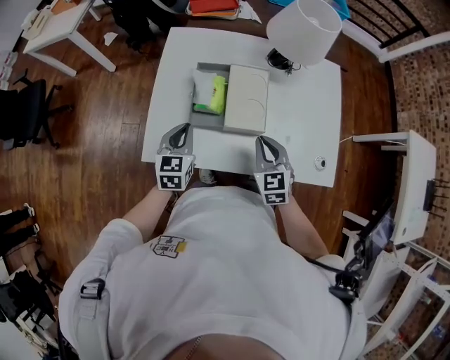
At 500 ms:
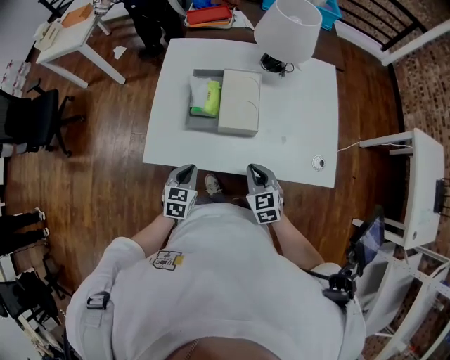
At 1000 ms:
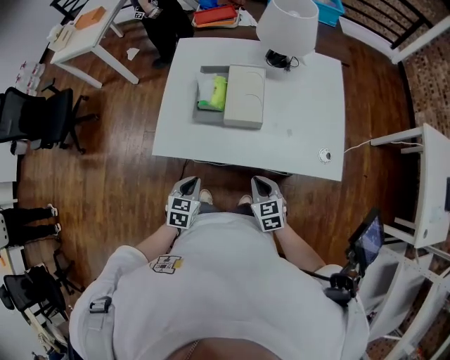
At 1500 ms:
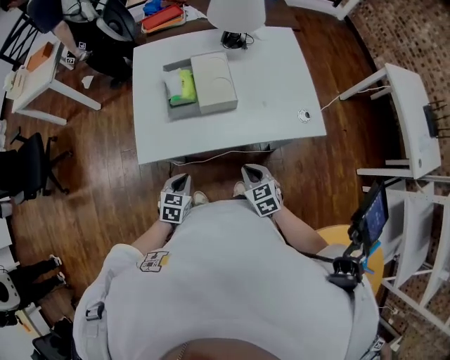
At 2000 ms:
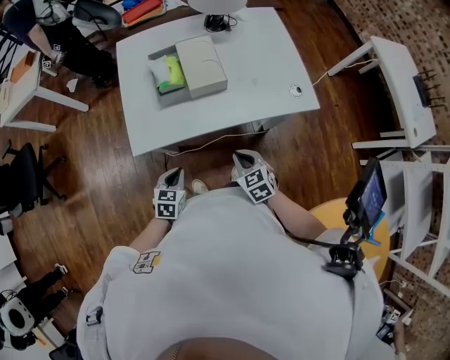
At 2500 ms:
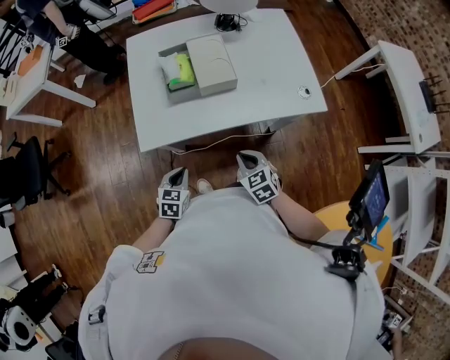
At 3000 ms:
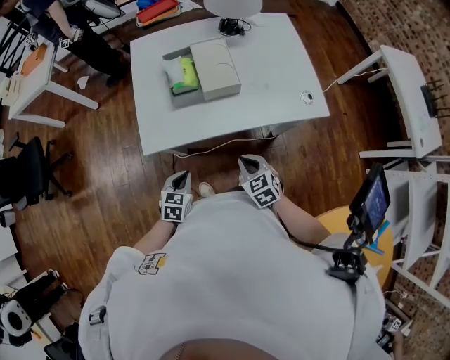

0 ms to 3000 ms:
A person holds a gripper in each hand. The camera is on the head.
0 ms to 1500 ms: The grippers both shift backward and downward by roughly 25 cm. The left gripper swivels roughly 30 degrees.
1500 ms to 3000 ms: The right gripper ends up some 5 cm from where it was.

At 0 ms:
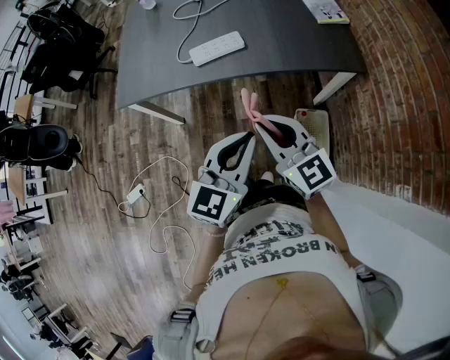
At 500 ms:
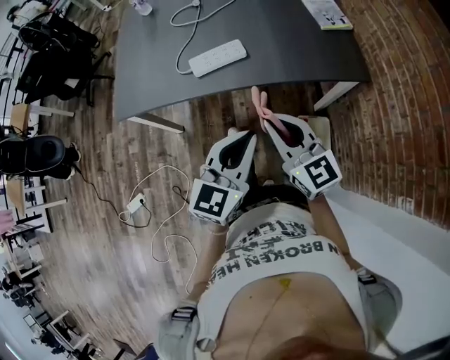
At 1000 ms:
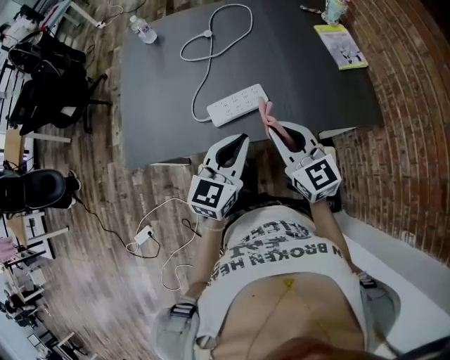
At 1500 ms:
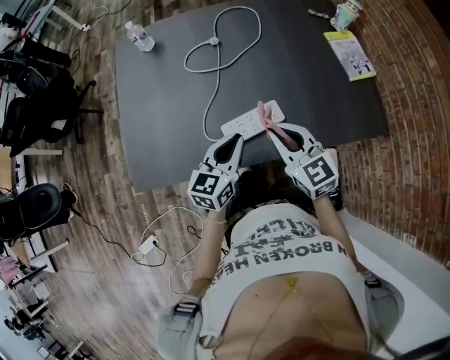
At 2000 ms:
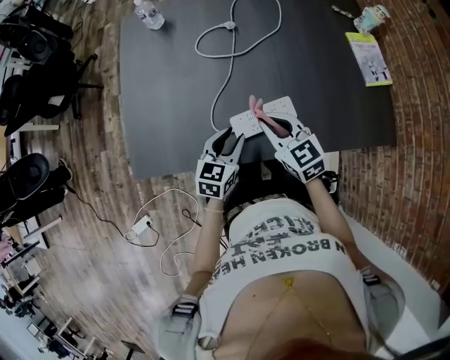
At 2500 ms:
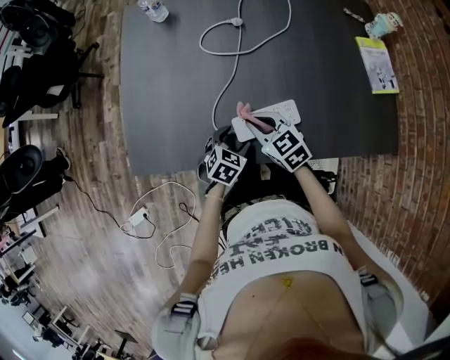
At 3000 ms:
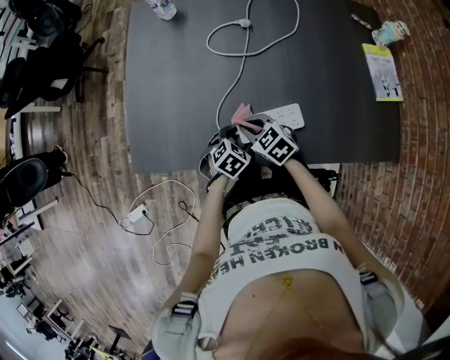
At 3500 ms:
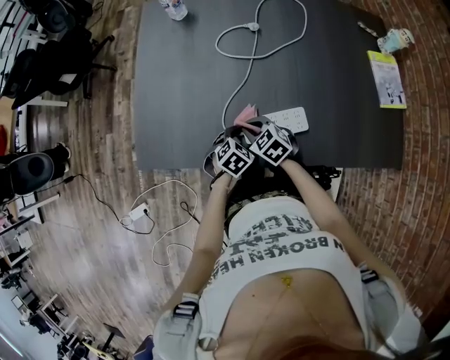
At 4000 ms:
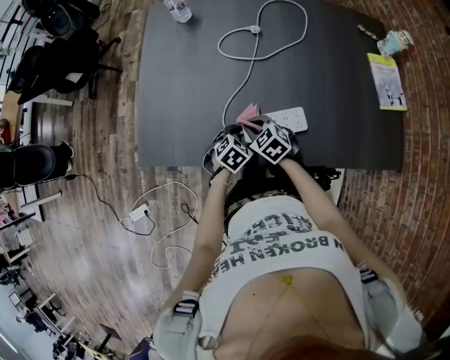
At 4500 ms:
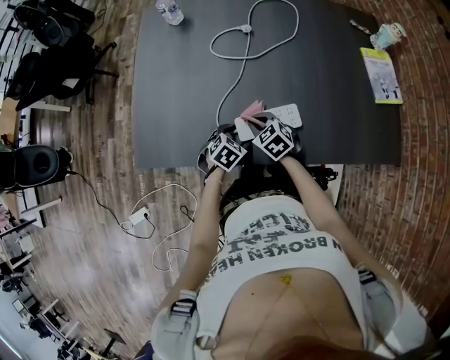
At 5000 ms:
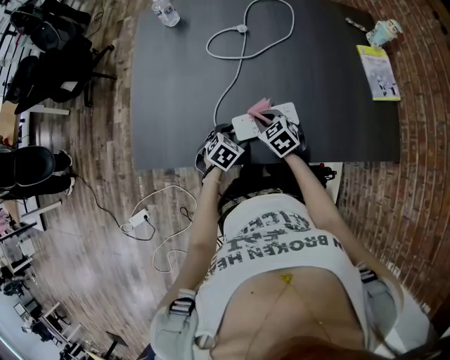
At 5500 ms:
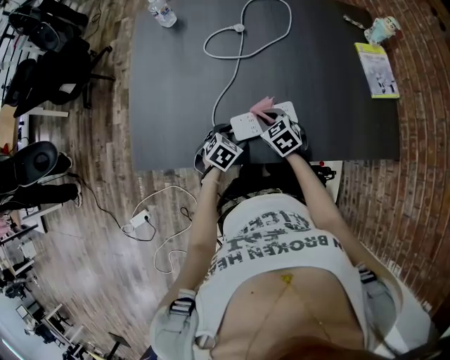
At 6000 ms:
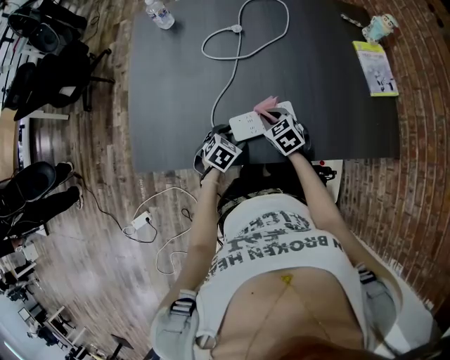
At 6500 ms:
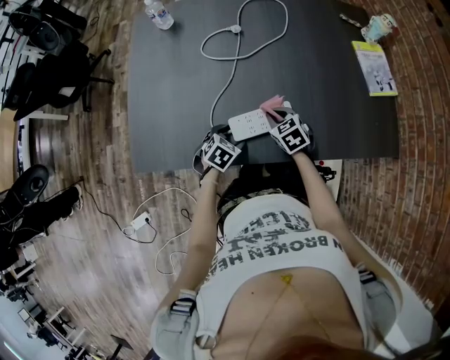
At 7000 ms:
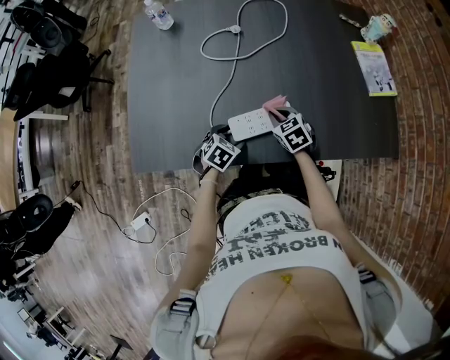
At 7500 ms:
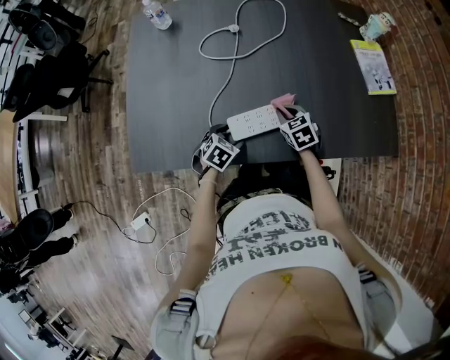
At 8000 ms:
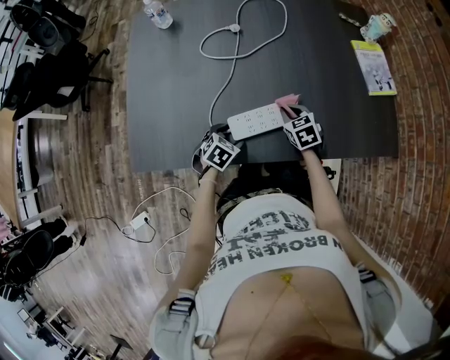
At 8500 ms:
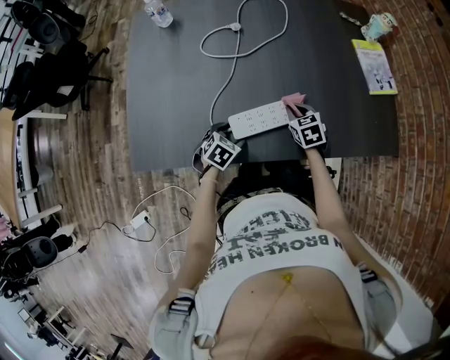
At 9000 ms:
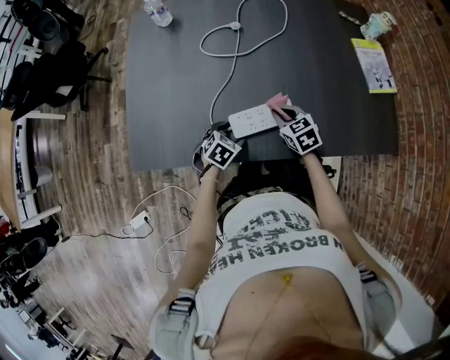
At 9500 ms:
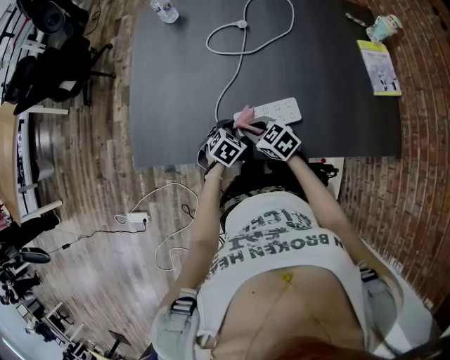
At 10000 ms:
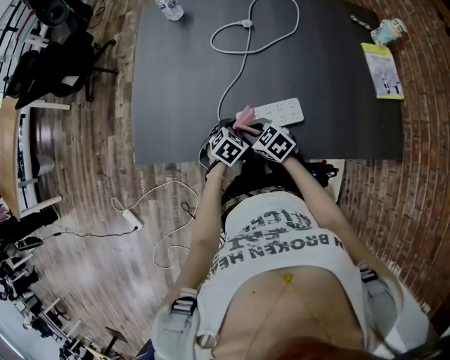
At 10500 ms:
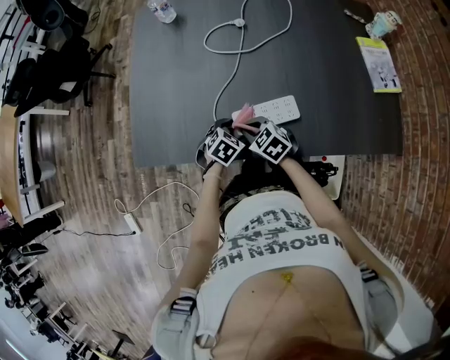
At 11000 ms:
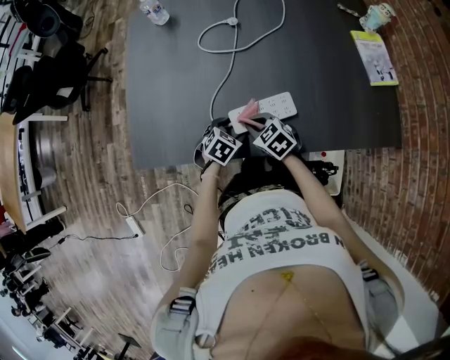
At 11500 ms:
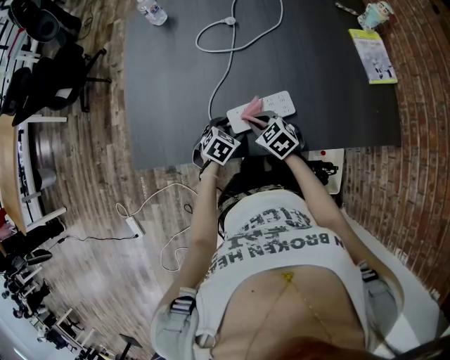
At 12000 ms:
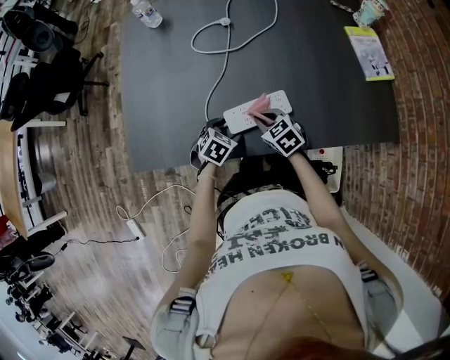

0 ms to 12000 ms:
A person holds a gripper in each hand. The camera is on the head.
0 ms to 2000 ms: The pair of grippers is taken forward and to the left, roughly 40 cm. The right gripper changes its angle by some 20 degrees. Meanwhile the left gripper is displaced downward by some 20 cm, changes its angle by about 20 degrees, and opens its fingers.
2000 ms to 4000 ms: The right gripper heads downward and to the left, covering about 15 cm, and turns by about 30 degrees. The left gripper heads downward, covering about 15 cm, tips its fingers downward by some 30 degrees, and opens its fingers.
4000 ms to 6000 ms: The right gripper travels to the right by about 10 cm.
6000 ms to 8000 ms: The right gripper moves to the right, about 10 cm.
8000 ms to 10000 ms: The right gripper travels to the left and backward by some 20 cm, and changes its angle by approximately 30 degrees.
10000 ms to 12000 ms: The right gripper heads to the right, covering about 10 cm.

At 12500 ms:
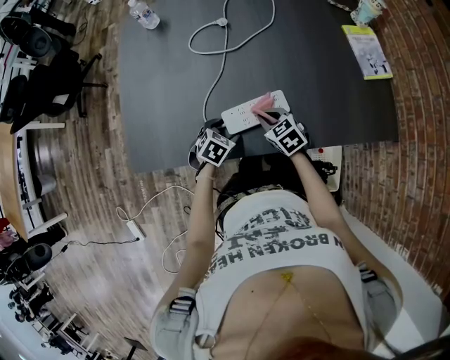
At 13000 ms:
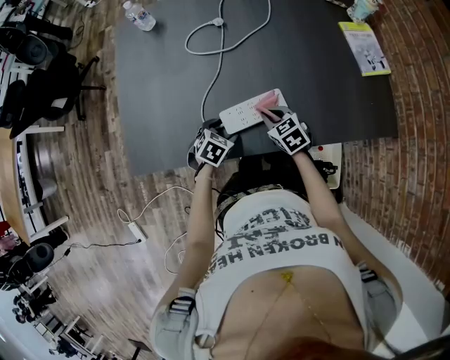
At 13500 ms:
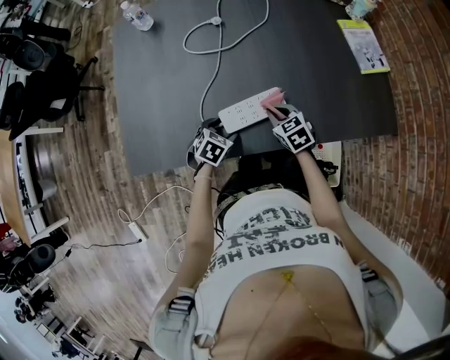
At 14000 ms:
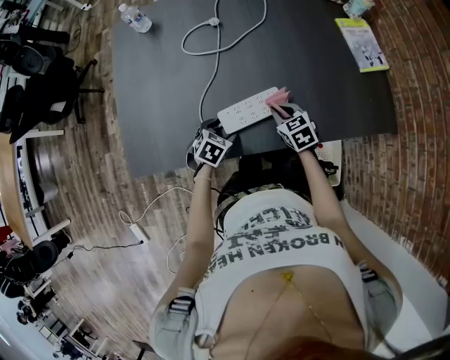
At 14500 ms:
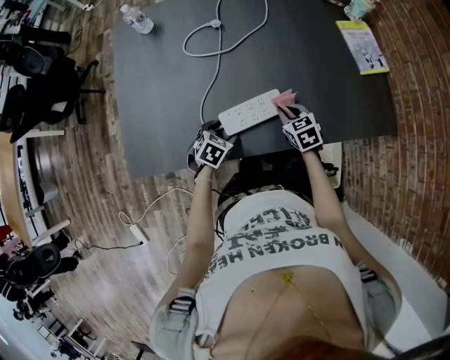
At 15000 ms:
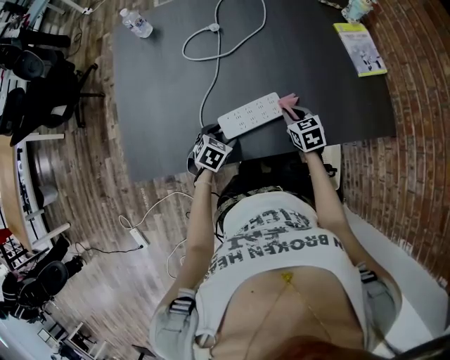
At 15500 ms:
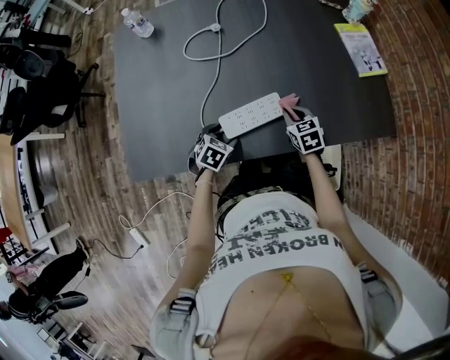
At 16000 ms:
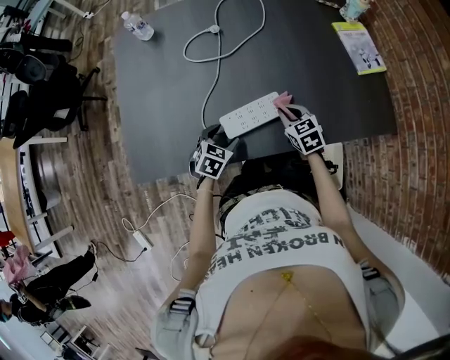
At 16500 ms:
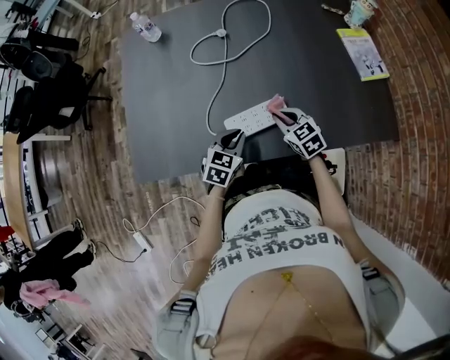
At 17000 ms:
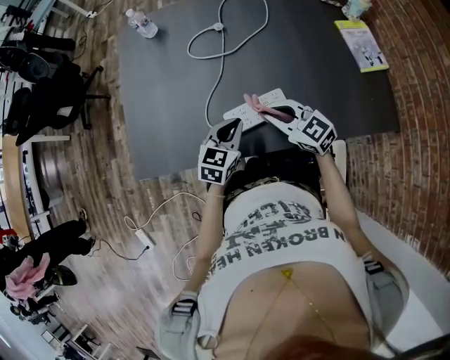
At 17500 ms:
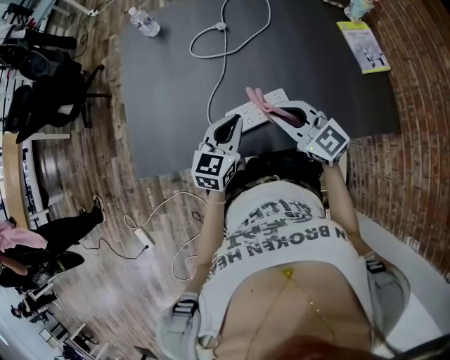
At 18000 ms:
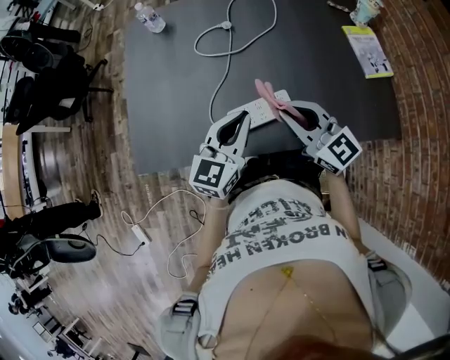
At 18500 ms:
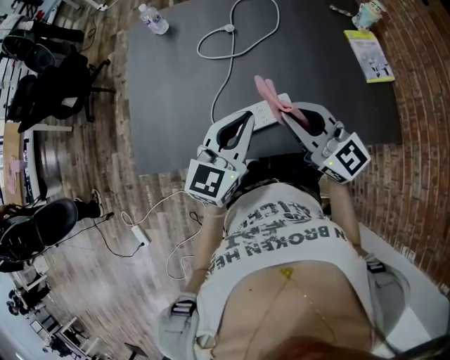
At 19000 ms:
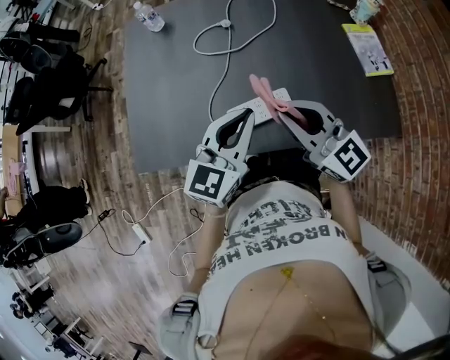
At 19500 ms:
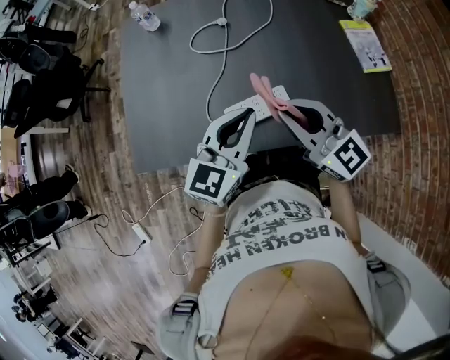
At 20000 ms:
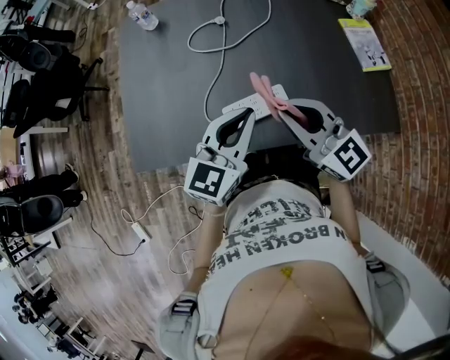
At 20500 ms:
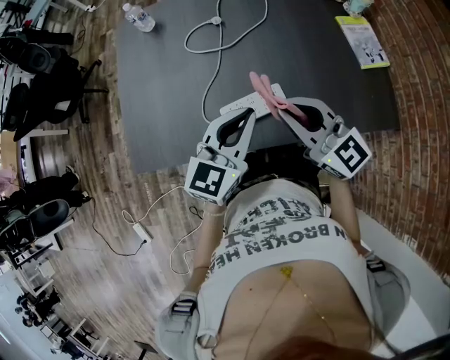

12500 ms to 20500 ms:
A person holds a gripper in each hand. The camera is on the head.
12500 ms to 14500 ms: The right gripper is displaced to the right by some 10 cm.
14500 ms to 16500 ms: The right gripper ends up some 5 cm from where it was; the left gripper travels upward by some 10 cm, changes its angle by approximately 20 degrees, and closes.
16500 ms to 18500 ms: Both grippers travel together upward, about 25 cm. The right gripper tilts its fingers approximately 40 degrees upward. Meanwhile the left gripper points its fingers approximately 30 degrees further upward.
18500 ms to 20500 ms: There are only small adjustments of the grippers.

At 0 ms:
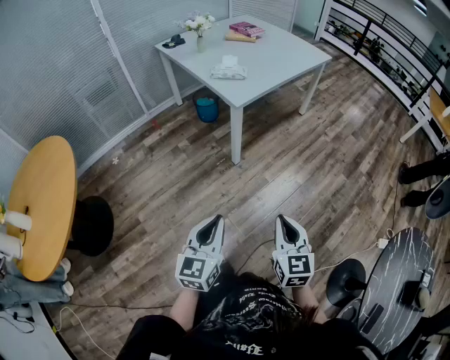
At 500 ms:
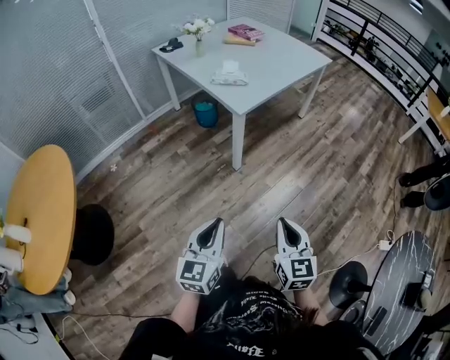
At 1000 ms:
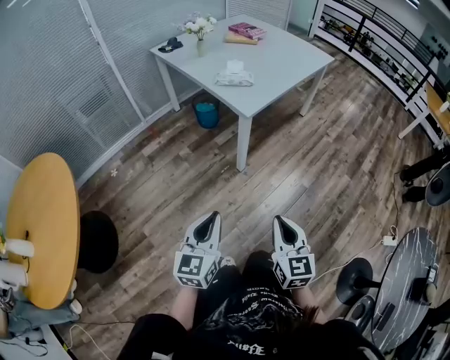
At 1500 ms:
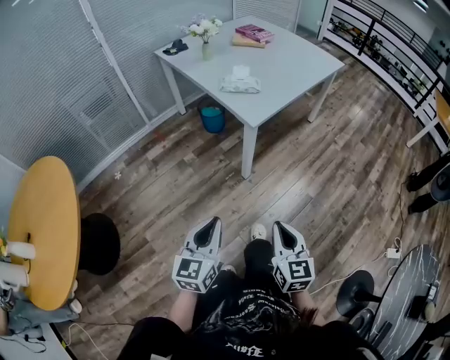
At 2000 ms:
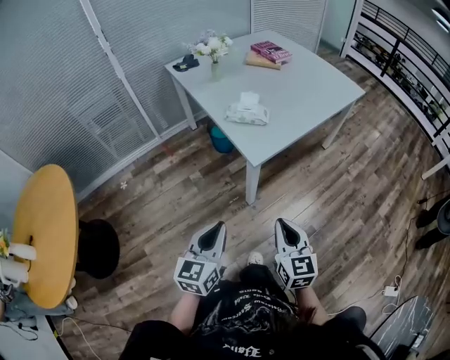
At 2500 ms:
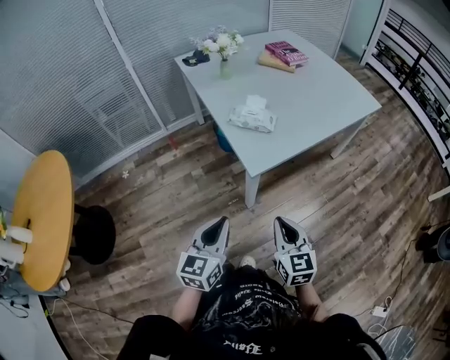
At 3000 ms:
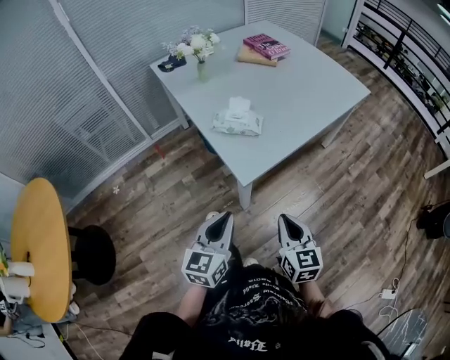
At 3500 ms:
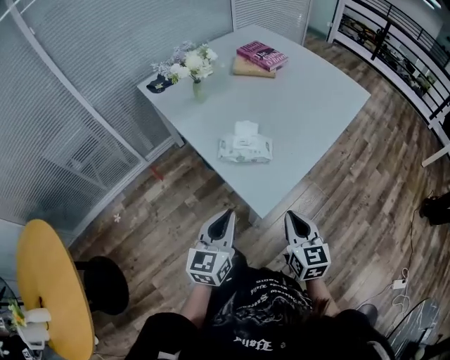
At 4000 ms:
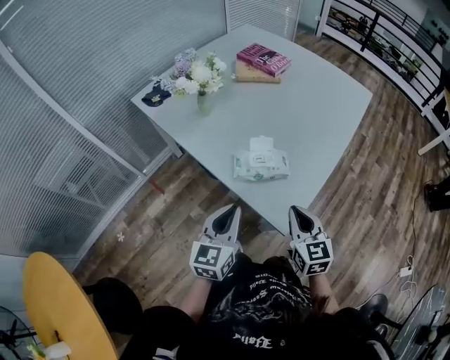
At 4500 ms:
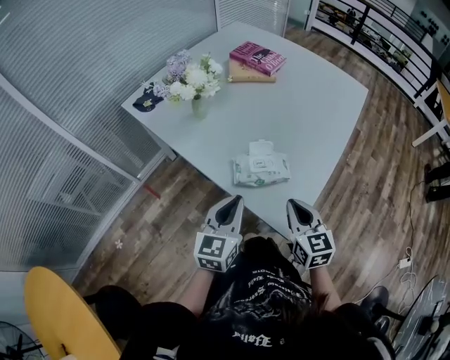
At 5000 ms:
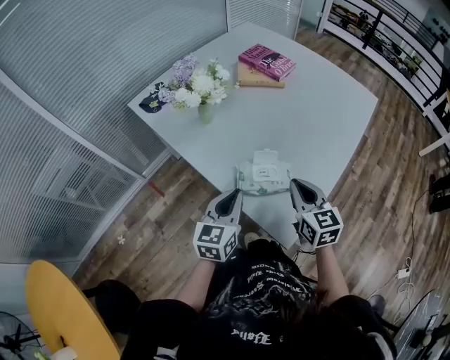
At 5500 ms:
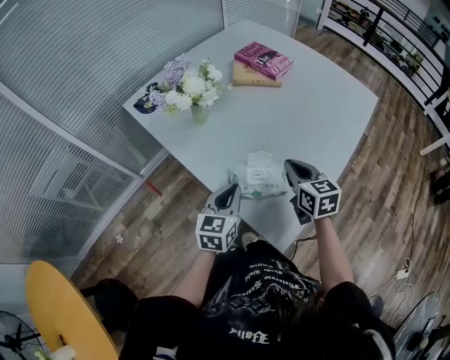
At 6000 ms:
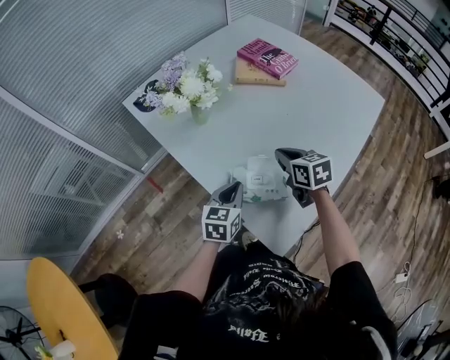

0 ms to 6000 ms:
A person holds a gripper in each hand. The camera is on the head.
0 ms to 2000 ms: Both grippers travel together forward, approximately 30 cm.
2000 ms to 4000 ms: The two grippers go some 35 cm forward.
4000 ms to 6000 ms: The right gripper heads forward, covering roughly 25 cm, and rotates about 30 degrees. Meanwhile the left gripper goes about 20 cm forward and downward.
